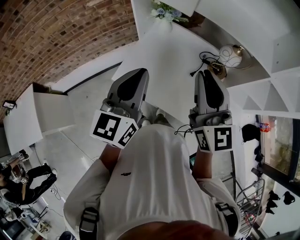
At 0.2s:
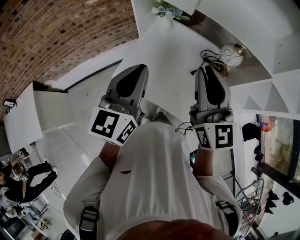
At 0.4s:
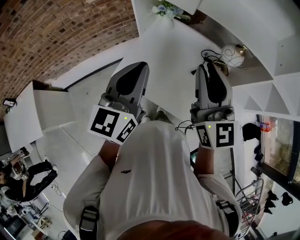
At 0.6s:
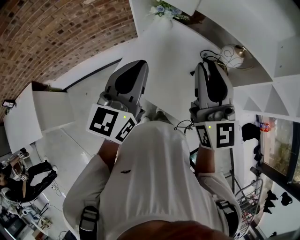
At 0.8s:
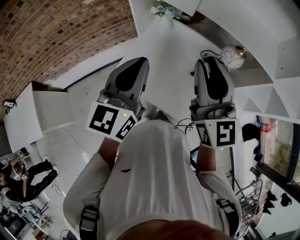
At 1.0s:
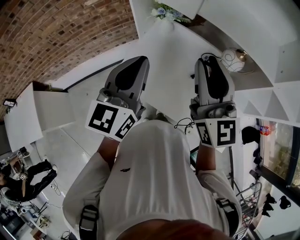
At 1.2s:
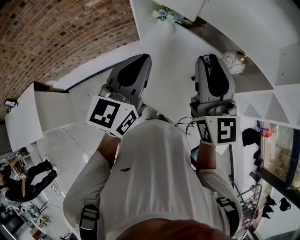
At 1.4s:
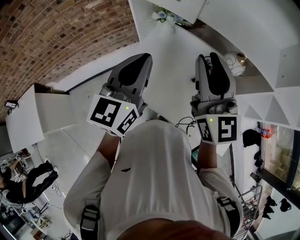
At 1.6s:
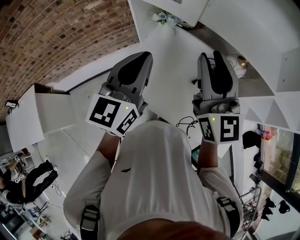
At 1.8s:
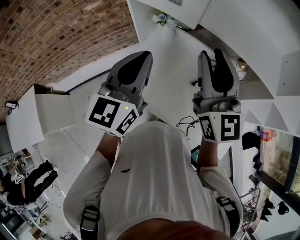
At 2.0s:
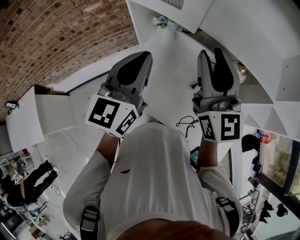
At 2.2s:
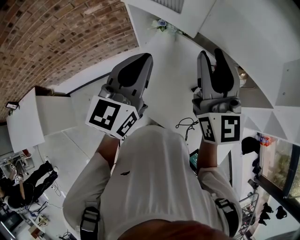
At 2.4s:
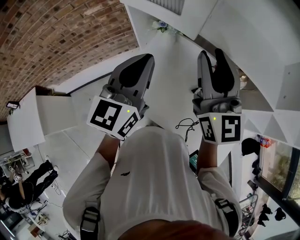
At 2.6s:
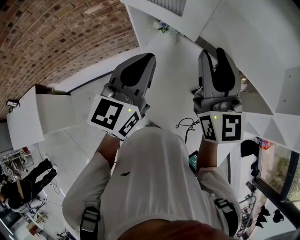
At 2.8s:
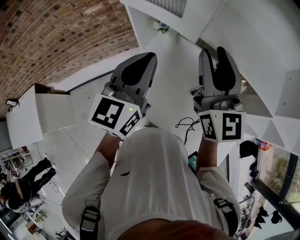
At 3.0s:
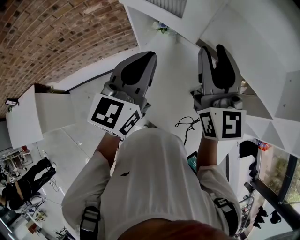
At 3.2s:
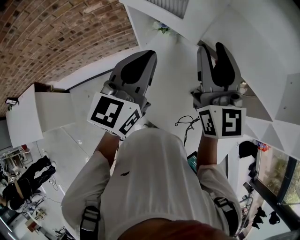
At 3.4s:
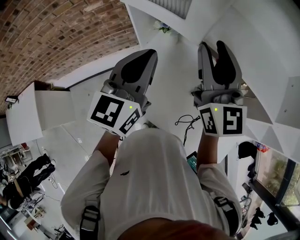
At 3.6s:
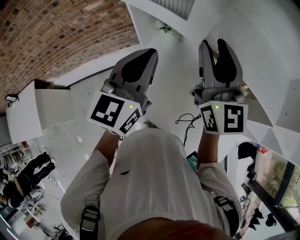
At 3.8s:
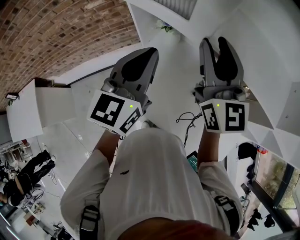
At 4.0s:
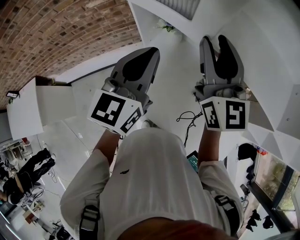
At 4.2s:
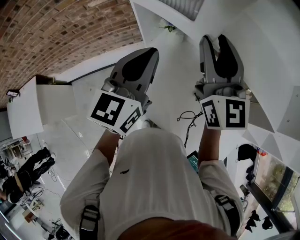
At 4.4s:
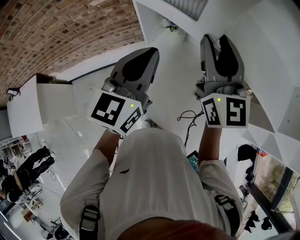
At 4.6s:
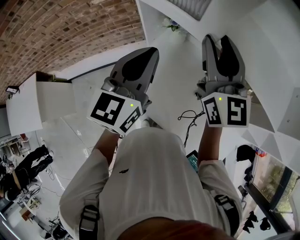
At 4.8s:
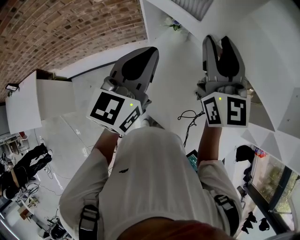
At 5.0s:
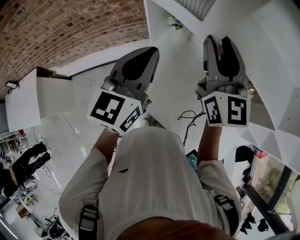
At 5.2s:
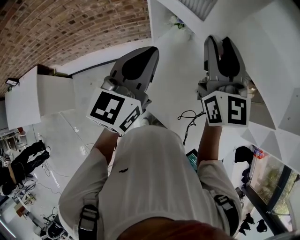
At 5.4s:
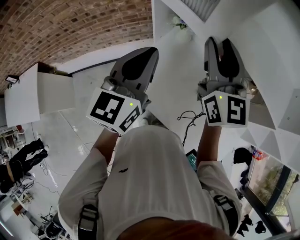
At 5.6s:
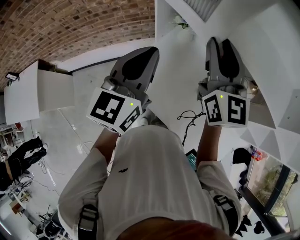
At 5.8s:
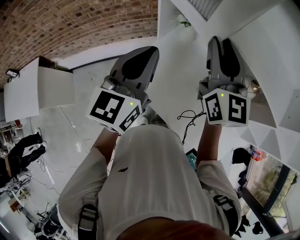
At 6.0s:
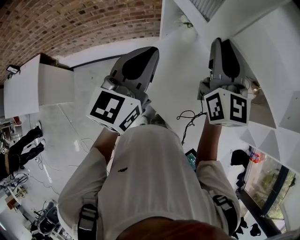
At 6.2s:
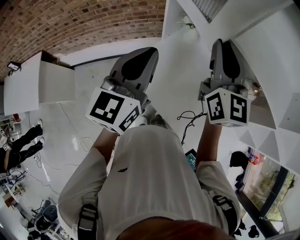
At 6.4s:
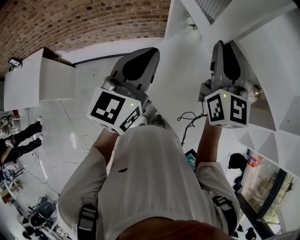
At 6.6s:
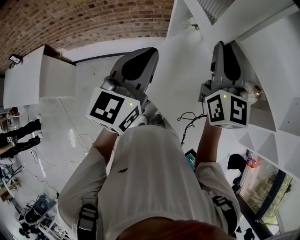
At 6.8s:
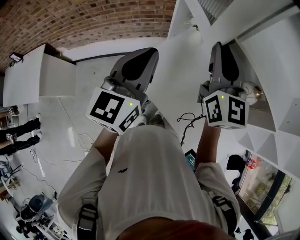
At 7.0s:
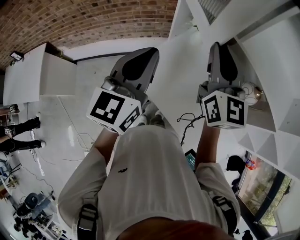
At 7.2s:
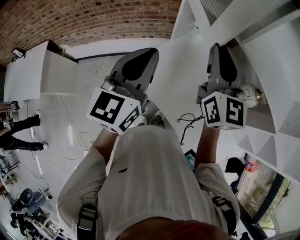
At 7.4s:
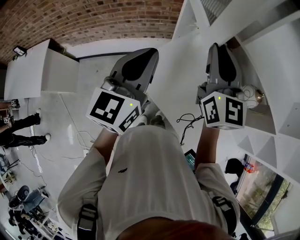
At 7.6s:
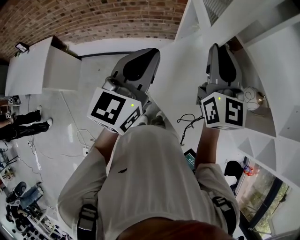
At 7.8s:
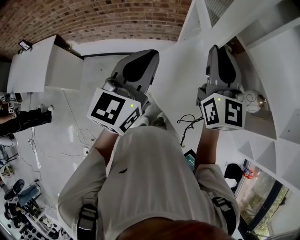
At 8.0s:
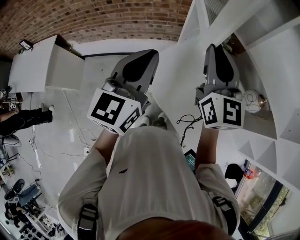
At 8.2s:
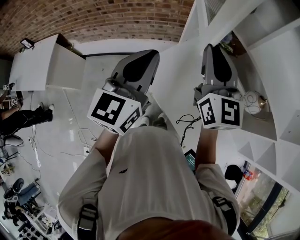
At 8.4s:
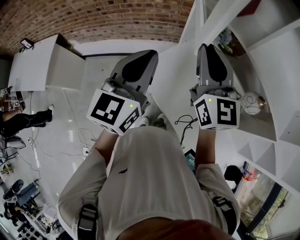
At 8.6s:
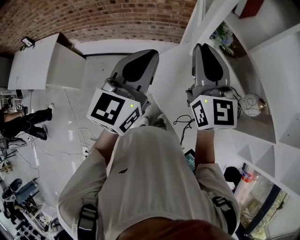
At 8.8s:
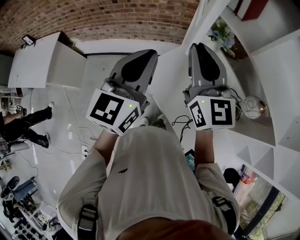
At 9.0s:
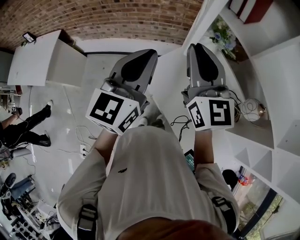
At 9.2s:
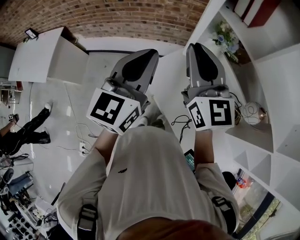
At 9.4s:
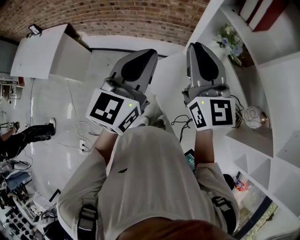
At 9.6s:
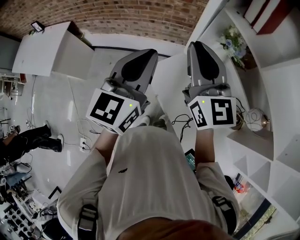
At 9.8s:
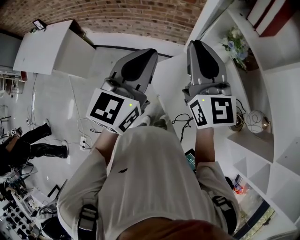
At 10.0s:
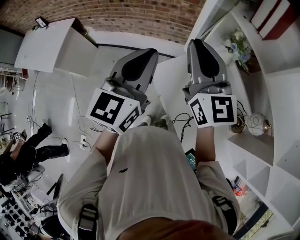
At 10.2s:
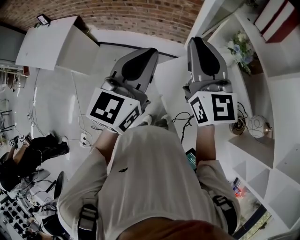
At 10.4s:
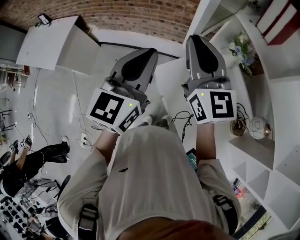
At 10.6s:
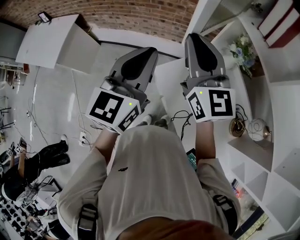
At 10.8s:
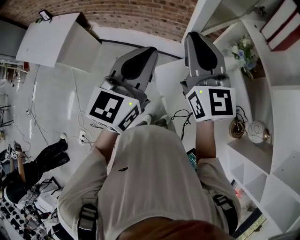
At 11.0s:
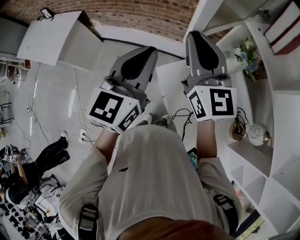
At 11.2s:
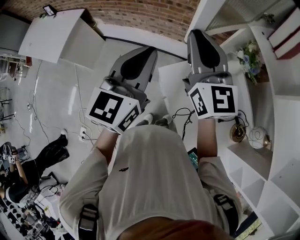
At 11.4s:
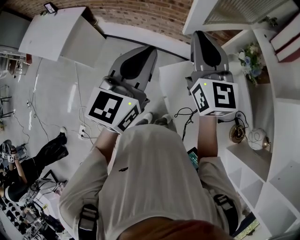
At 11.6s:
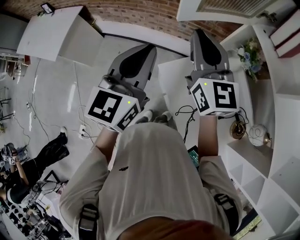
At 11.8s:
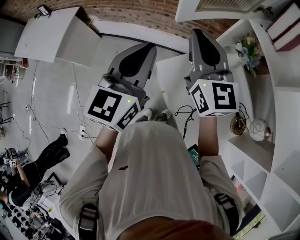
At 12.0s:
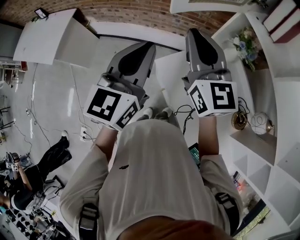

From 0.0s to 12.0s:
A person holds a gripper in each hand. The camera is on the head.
From 0.0s to 1.6s: Both grippers travel together forward, roughly 10 cm.
From 1.6s to 3.0s: The grippers both shift forward by some 10 cm.
From 3.0s to 4.4s: The right gripper moves forward, approximately 5 cm.
From 4.4s to 6.0s: The right gripper travels backward by about 5 cm. The left gripper goes approximately 10 cm backward and to the left.
From 6.0s to 7.6s: The left gripper shifts roughly 5 cm backward. Meanwhile the right gripper is displaced to the left by roughly 5 cm.
From 7.6s to 9.0s: The right gripper heads to the left, covering approximately 10 cm.
From 9.0s to 10.4s: Both grippers move to the left, roughly 5 cm.

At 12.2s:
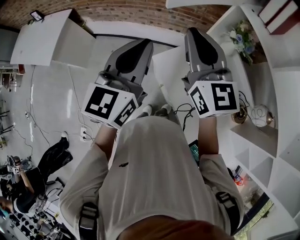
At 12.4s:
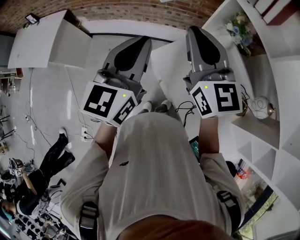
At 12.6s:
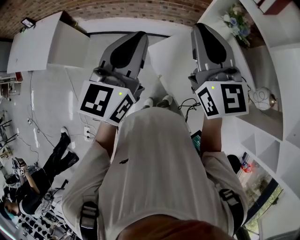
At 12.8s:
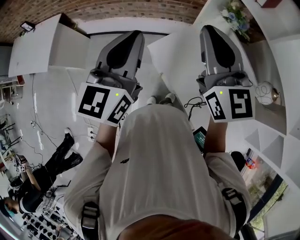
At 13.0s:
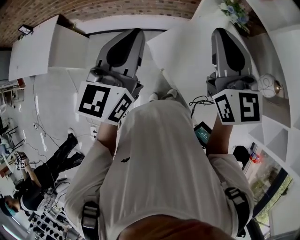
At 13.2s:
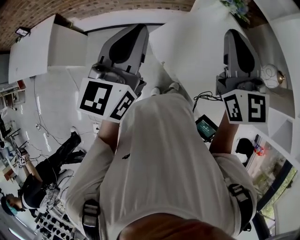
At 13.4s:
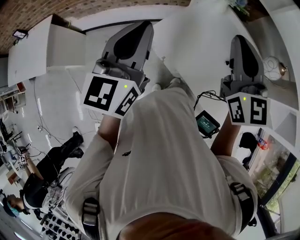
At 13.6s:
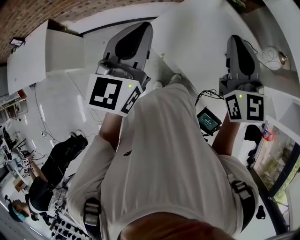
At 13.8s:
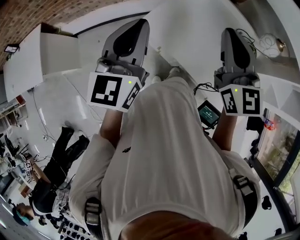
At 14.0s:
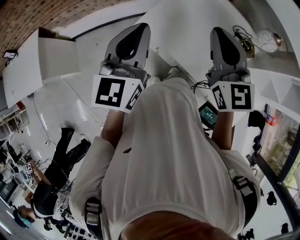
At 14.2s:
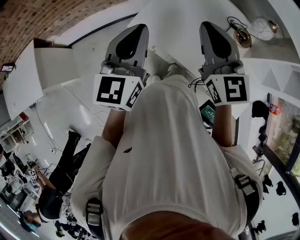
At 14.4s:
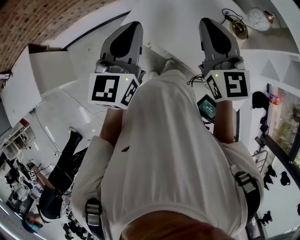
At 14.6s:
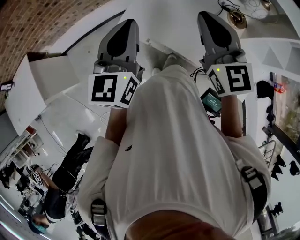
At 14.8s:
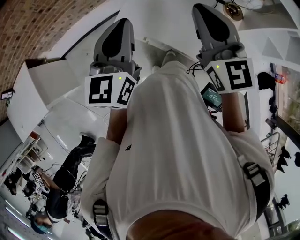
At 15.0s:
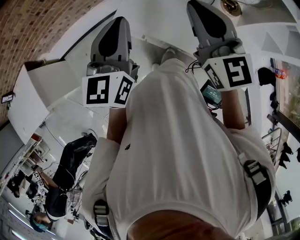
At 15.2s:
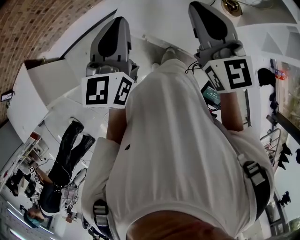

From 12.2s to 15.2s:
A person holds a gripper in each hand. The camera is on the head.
From 12.2s to 13.8s: The left gripper shifts roughly 5 cm backward. Meanwhile the right gripper moves to the right and backward, approximately 20 cm, and turns by approximately 20 degrees.
From 13.8s to 15.2s: The grippers move only a little.

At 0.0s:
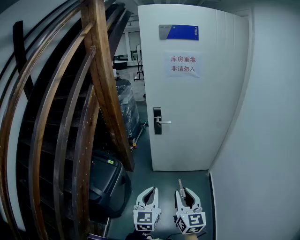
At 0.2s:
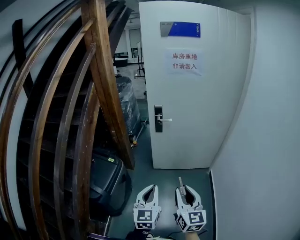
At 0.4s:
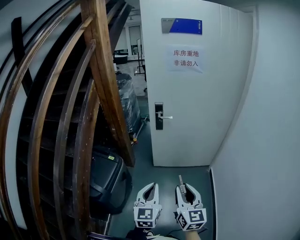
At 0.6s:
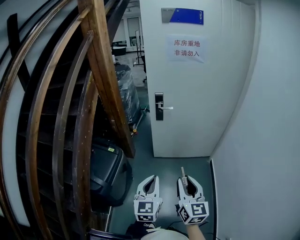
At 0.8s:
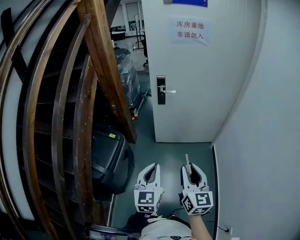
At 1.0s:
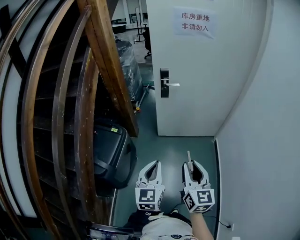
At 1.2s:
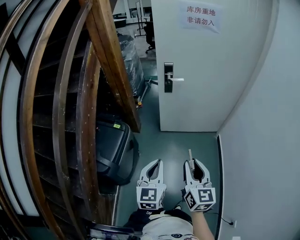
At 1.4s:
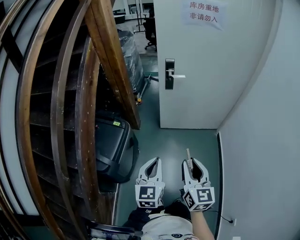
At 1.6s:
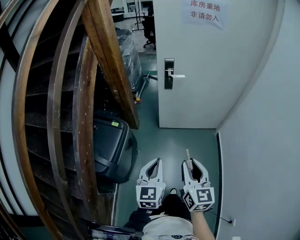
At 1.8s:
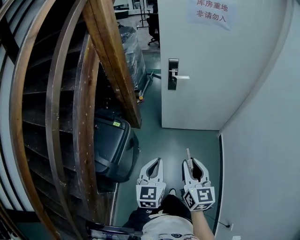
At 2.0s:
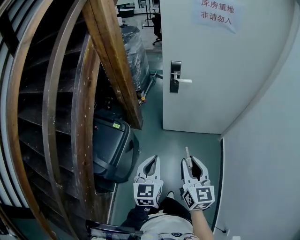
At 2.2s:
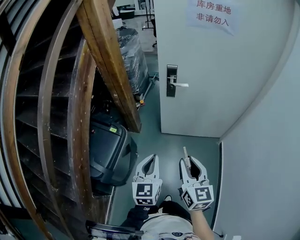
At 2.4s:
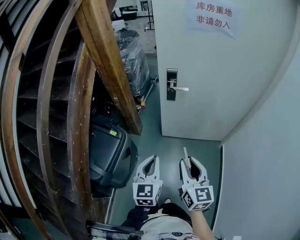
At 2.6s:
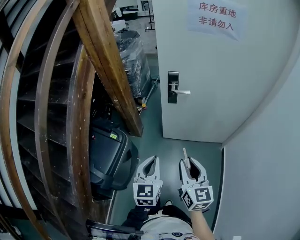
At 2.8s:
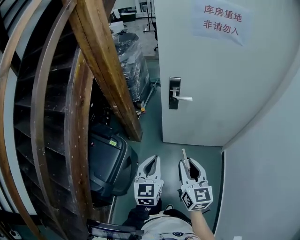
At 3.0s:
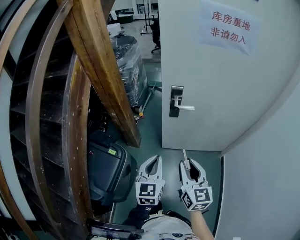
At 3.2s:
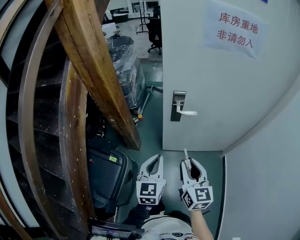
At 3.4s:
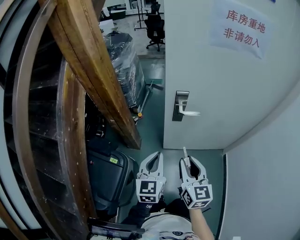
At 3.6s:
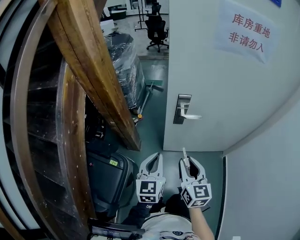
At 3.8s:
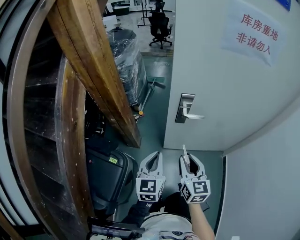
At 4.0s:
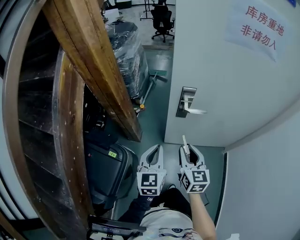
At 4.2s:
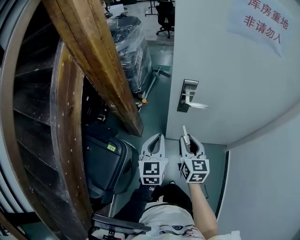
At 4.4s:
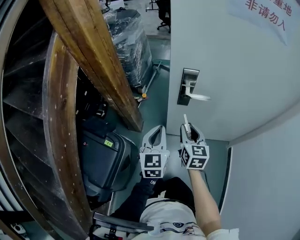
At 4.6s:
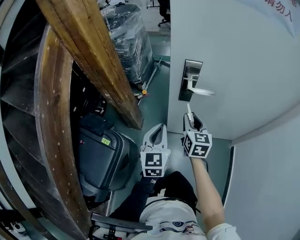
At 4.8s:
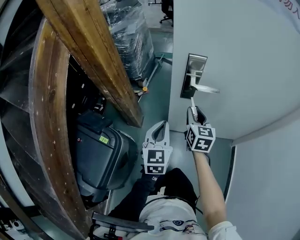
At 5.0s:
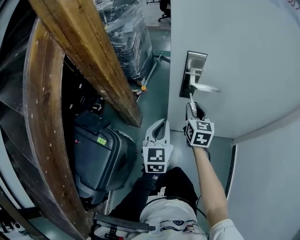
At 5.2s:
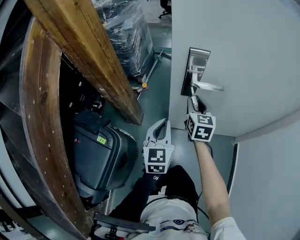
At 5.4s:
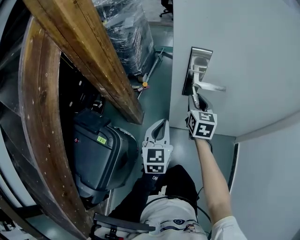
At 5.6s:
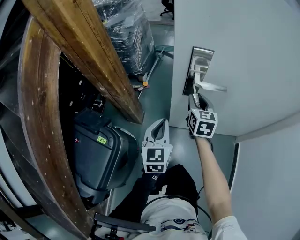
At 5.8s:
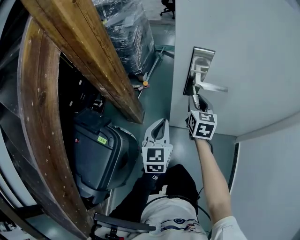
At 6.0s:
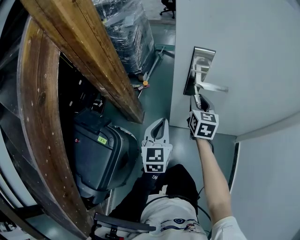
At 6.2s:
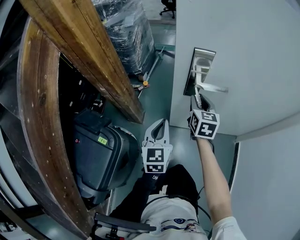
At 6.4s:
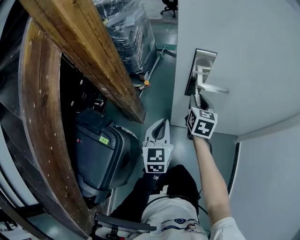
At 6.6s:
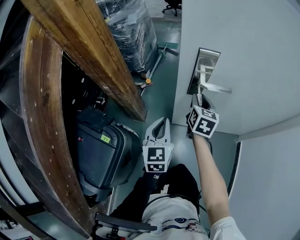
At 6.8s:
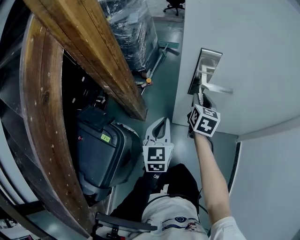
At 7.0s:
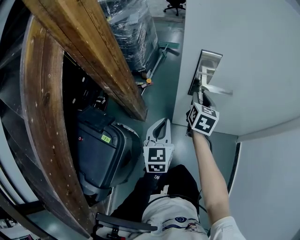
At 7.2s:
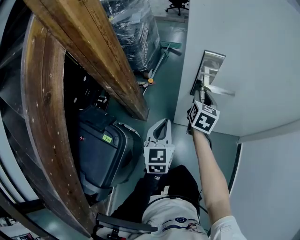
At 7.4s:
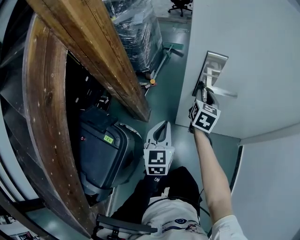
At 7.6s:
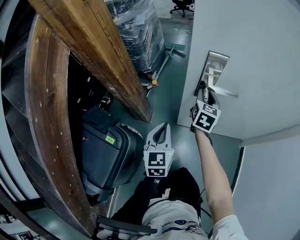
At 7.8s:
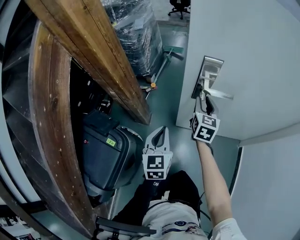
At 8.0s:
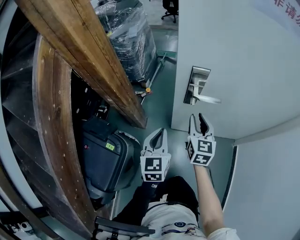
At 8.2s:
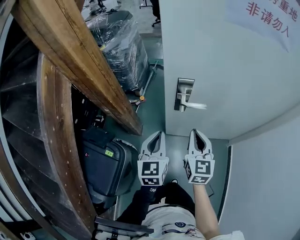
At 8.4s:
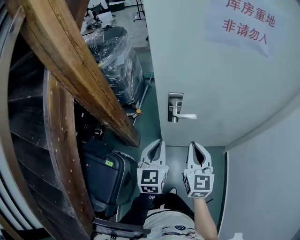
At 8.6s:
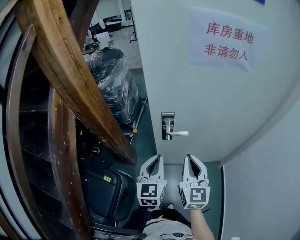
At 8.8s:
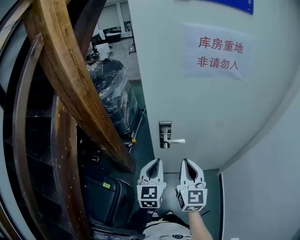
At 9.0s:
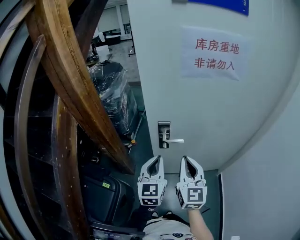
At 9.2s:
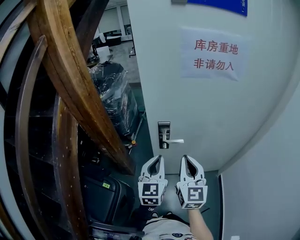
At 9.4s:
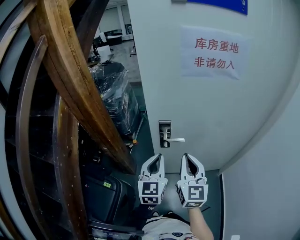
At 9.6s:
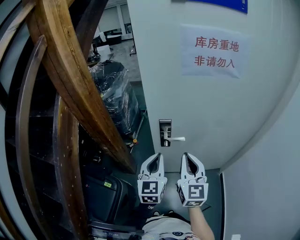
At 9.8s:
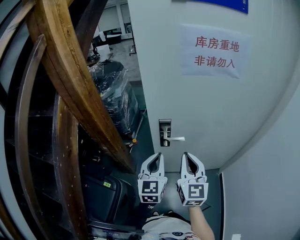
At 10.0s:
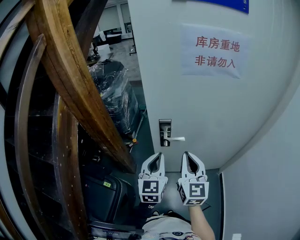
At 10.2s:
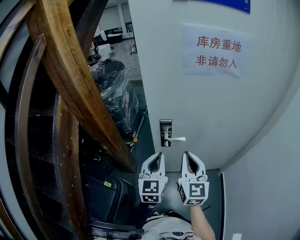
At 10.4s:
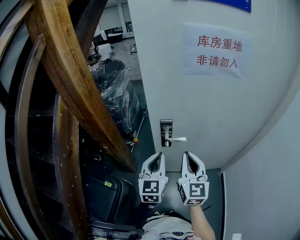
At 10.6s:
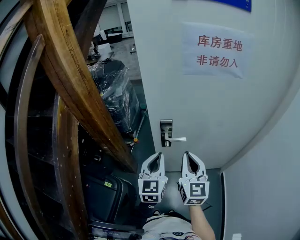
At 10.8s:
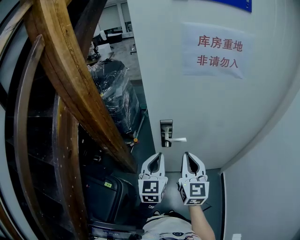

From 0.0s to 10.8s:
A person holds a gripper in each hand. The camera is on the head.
From 0.0s to 1.6s: The grippers both shift to the left, downward and forward by roughly 10 cm.
From 1.6s to 3.0s: The two grippers go about 25 cm forward.
From 3.0s to 4.6s: Both grippers travel together forward and downward, about 25 cm.
From 4.6s to 6.2s: The left gripper heads downward, covering roughly 5 cm; the right gripper heads forward, covering approximately 10 cm.
From 6.2s to 7.8s: The grippers stay close to where they were, moving slightly.
From 7.8s to 9.2s: The right gripper travels upward and backward by about 35 cm, swivels some 20 degrees, and closes up. The left gripper shifts roughly 30 cm upward and to the right.
From 9.2s to 10.8s: The grippers make only small movements.
